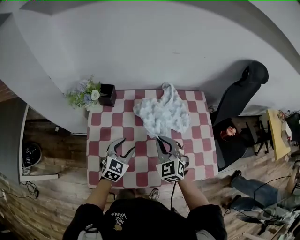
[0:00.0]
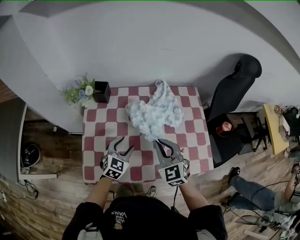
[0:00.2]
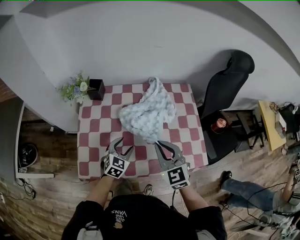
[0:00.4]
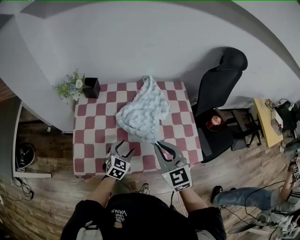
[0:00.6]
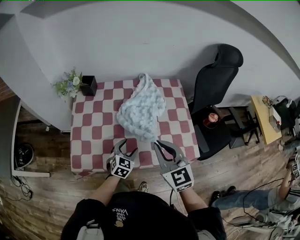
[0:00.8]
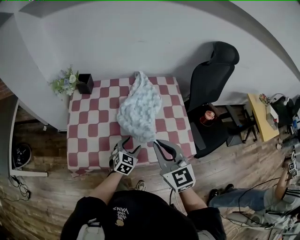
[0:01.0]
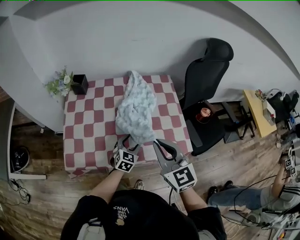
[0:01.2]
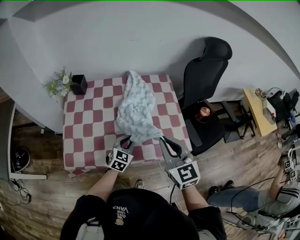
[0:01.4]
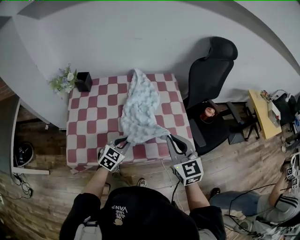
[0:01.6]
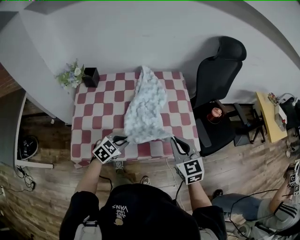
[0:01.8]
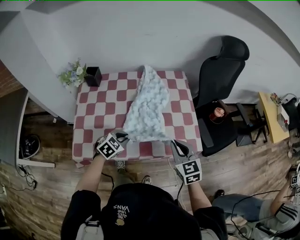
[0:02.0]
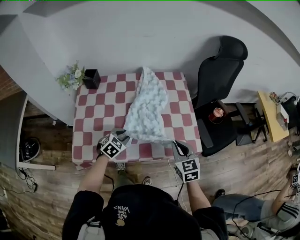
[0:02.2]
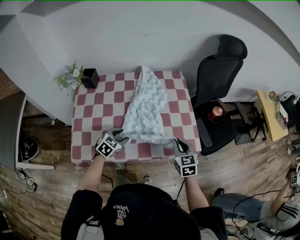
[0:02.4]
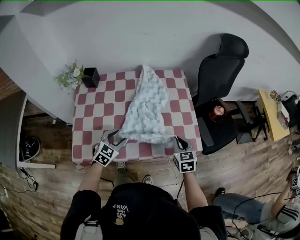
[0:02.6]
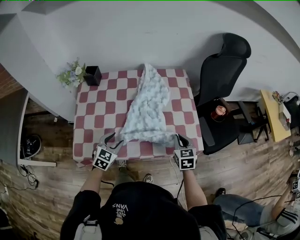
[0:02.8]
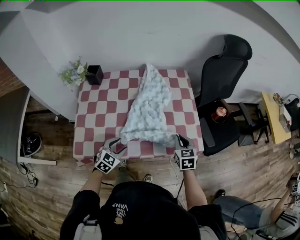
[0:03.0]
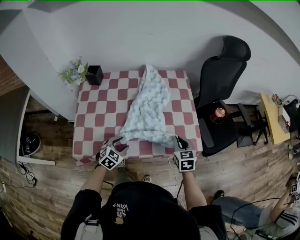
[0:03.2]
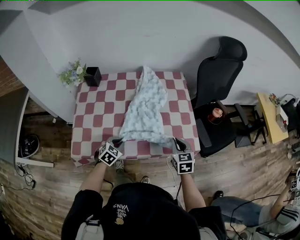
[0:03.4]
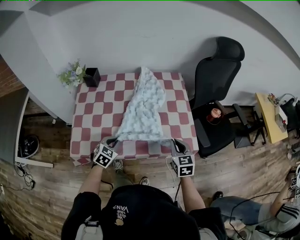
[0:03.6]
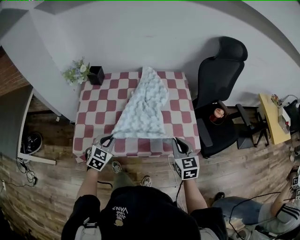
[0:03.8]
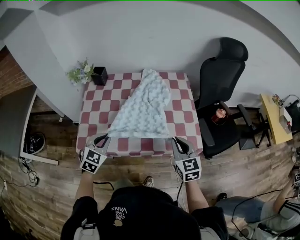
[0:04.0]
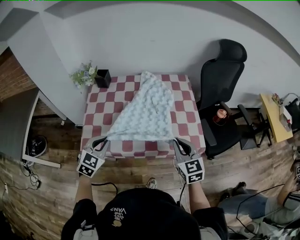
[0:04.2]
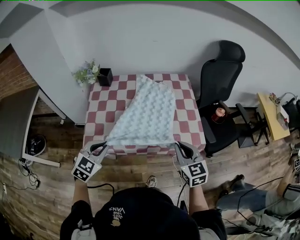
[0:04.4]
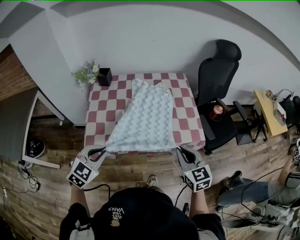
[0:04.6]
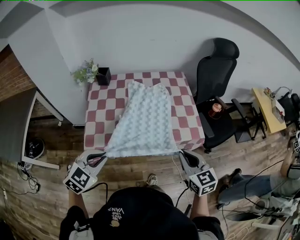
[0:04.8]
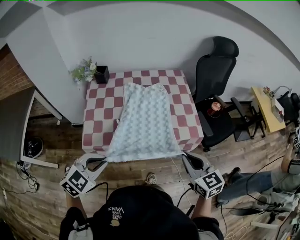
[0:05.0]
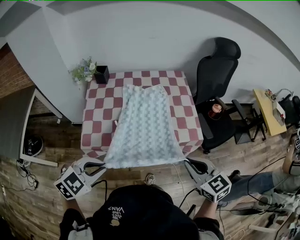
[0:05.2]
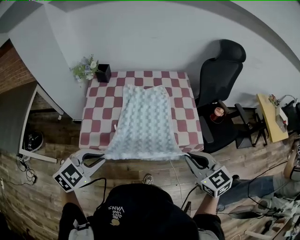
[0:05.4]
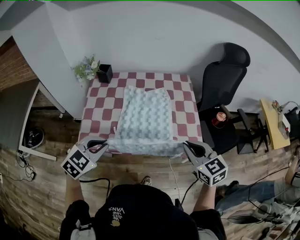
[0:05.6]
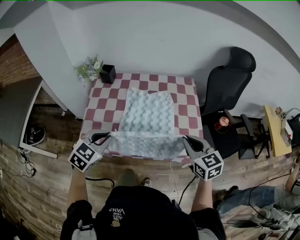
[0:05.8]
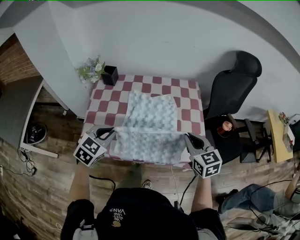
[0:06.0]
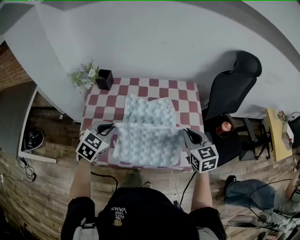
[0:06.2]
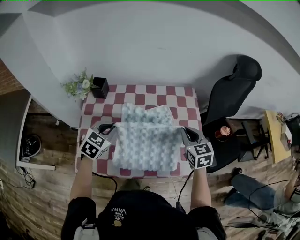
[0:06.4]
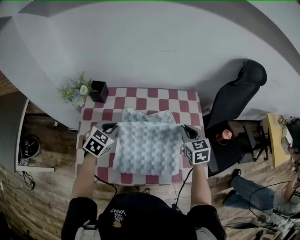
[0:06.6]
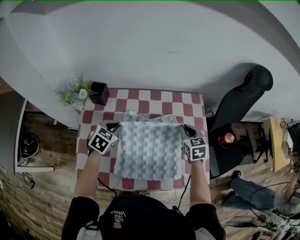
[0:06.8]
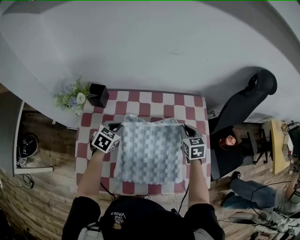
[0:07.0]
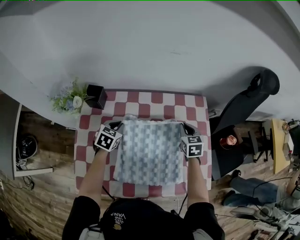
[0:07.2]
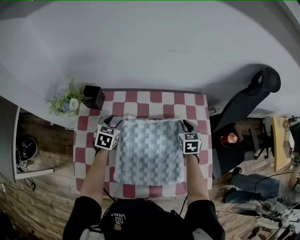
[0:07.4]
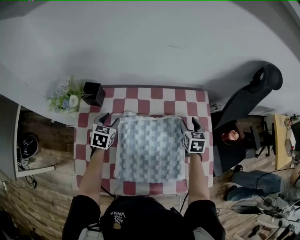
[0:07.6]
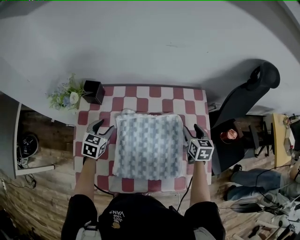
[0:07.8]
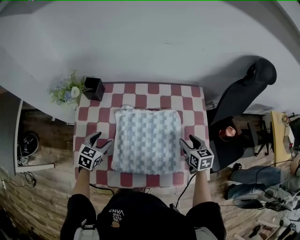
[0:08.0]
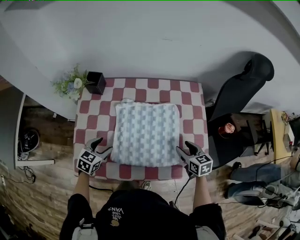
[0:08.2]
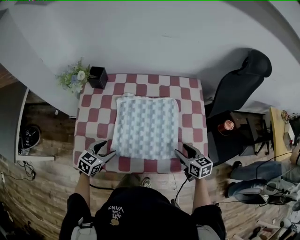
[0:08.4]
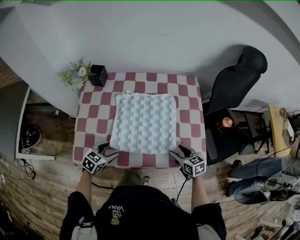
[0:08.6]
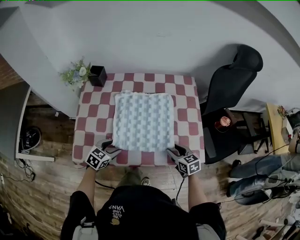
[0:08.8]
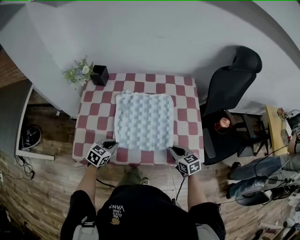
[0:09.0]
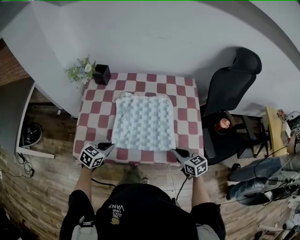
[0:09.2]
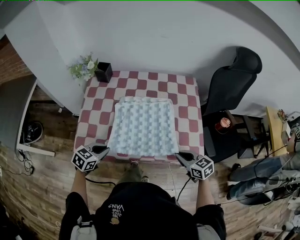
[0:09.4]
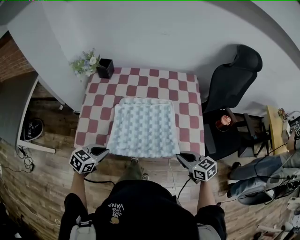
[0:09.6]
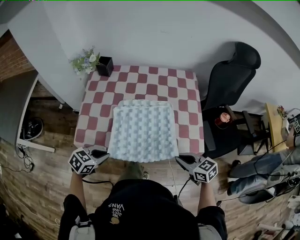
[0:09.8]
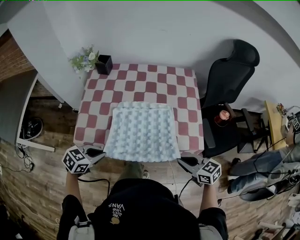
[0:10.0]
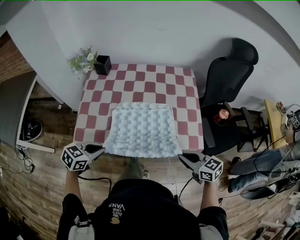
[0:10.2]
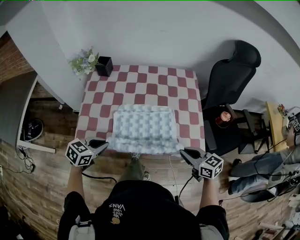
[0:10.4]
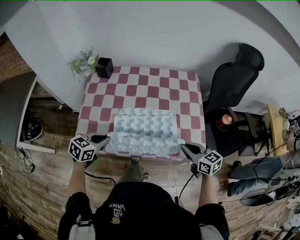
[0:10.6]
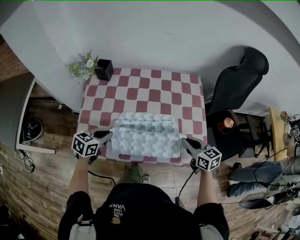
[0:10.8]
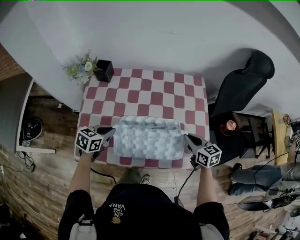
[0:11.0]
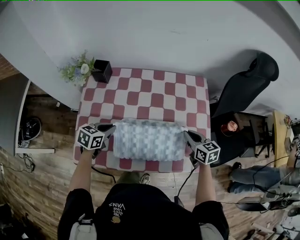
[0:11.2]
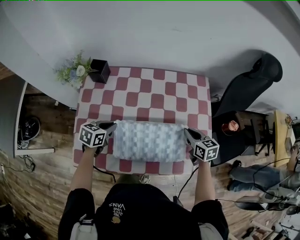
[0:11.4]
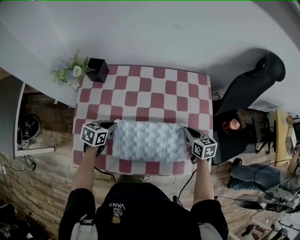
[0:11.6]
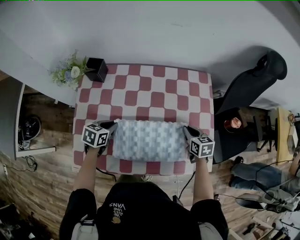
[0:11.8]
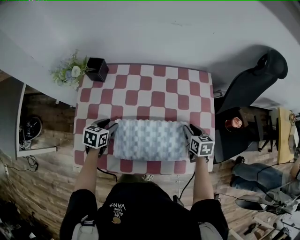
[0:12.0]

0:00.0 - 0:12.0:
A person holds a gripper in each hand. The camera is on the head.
0:00.0 - 0:01.6: The left gripper goes about 20 cm to the right and backward, and closes its fingers, while the right gripper goes some 25 cm to the right, backward and upward, and changes its angle by about 30 degrees.
0:01.6 - 0:03.0: The right gripper travels downward by roughly 15 cm, and swivels roughly 20 degrees. Meanwhile the left gripper heads to the left and backward, covering some 10 cm, and opens.
0:03.0 - 0:04.4: Both grippers move upward, backward and to the left, about 20 cm. The left gripper closes its fingers.
0:04.4 - 0:06.0: Both grippers move forward, roughly 10 cm.
0:06.0 - 0:07.6: The grippers both shift forward and downward by some 35 cm. The left gripper turns by about 20 degrees, and opens up; the right gripper turns by about 30 degrees, and opens its fingers.
0:07.6 - 0:09.0: The two grippers go approximately 30 cm backward. The right gripper turns by approximately 30 degrees, and closes its fingers, while the left gripper closes its fingers.
0:09.0 - 0:10.4: The two grippers go some 15 cm upward and backward.
0:10.4 - 0:12.0: Both grippers move forward and downward, approximately 25 cm. The left gripper rotates roughly 20 degrees, and opens up; the right gripper changes its angle by roughly 40 degrees, and opens its fingers.

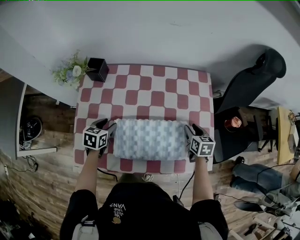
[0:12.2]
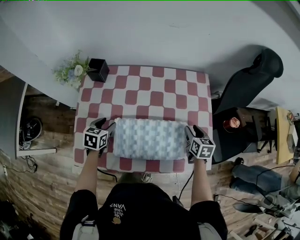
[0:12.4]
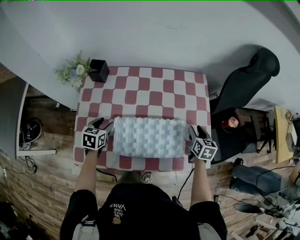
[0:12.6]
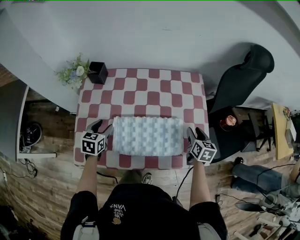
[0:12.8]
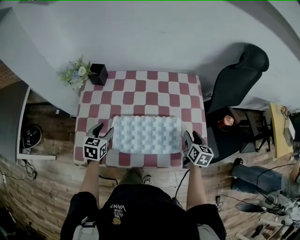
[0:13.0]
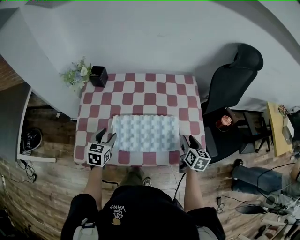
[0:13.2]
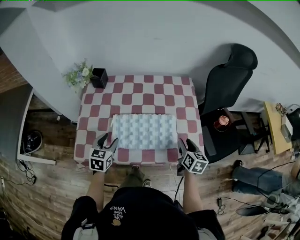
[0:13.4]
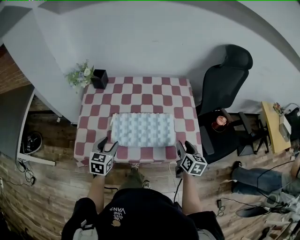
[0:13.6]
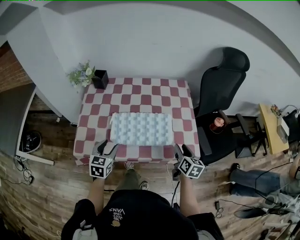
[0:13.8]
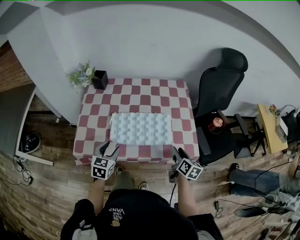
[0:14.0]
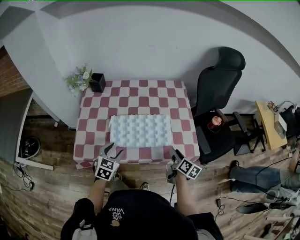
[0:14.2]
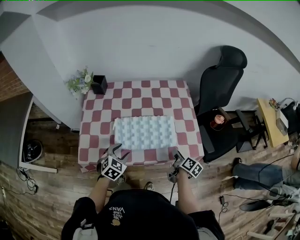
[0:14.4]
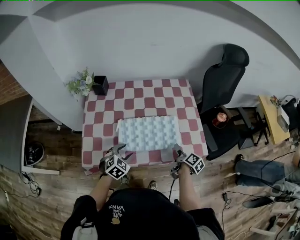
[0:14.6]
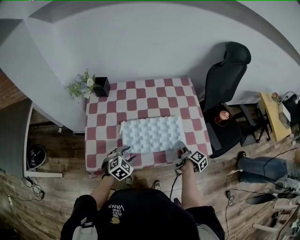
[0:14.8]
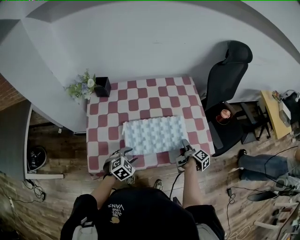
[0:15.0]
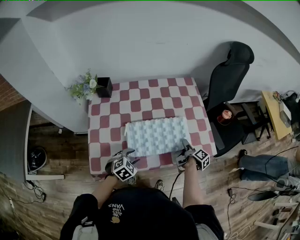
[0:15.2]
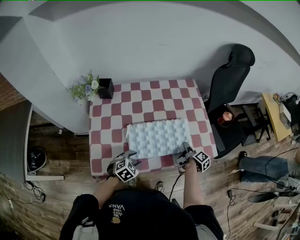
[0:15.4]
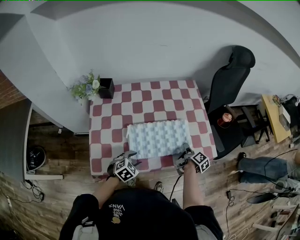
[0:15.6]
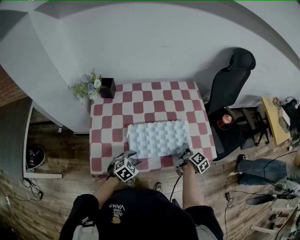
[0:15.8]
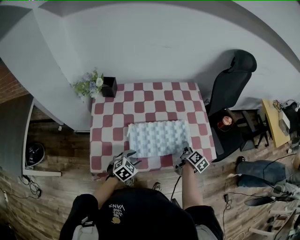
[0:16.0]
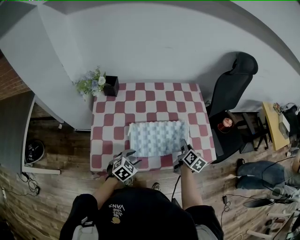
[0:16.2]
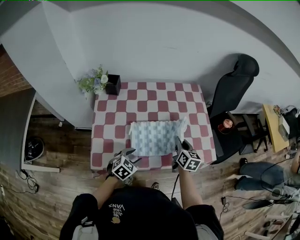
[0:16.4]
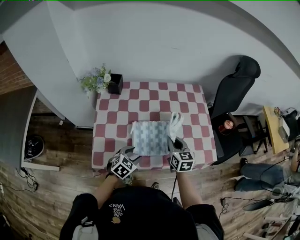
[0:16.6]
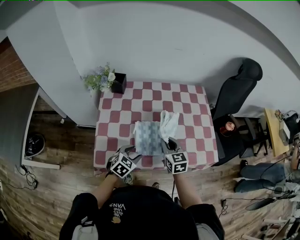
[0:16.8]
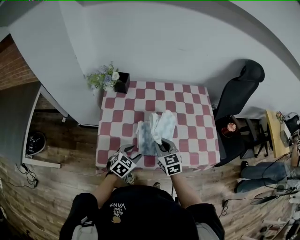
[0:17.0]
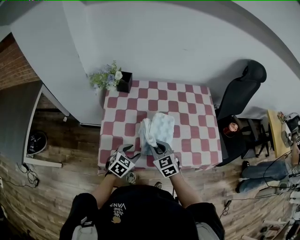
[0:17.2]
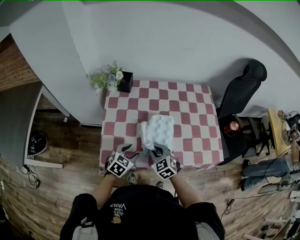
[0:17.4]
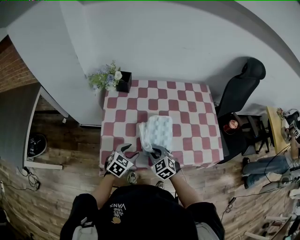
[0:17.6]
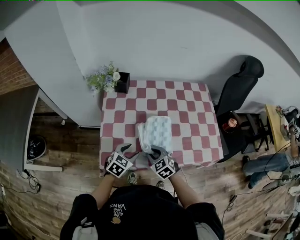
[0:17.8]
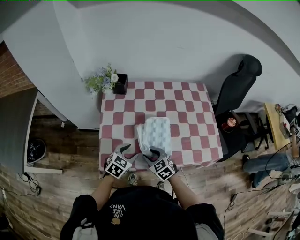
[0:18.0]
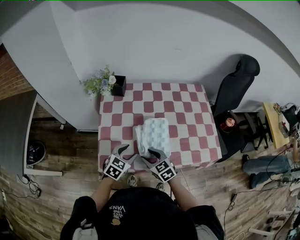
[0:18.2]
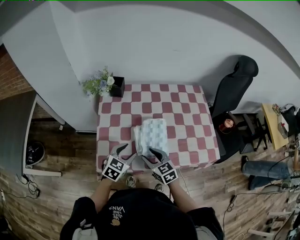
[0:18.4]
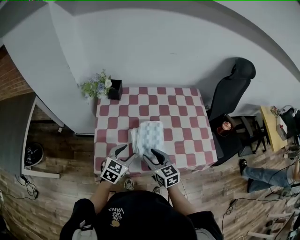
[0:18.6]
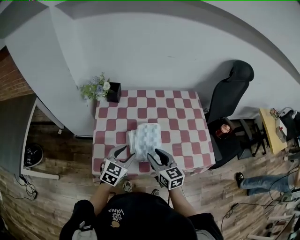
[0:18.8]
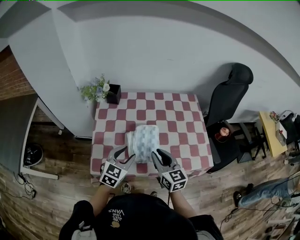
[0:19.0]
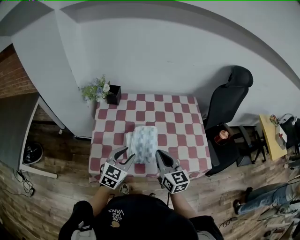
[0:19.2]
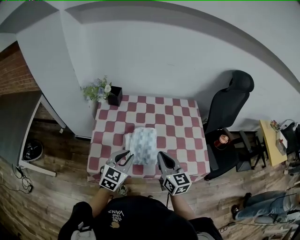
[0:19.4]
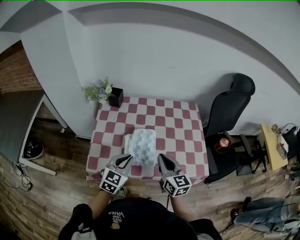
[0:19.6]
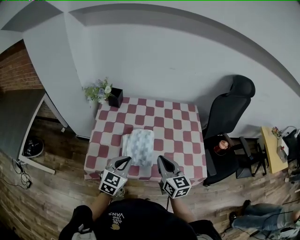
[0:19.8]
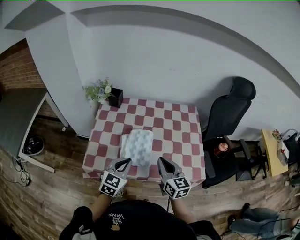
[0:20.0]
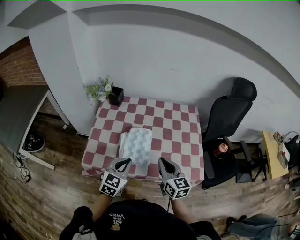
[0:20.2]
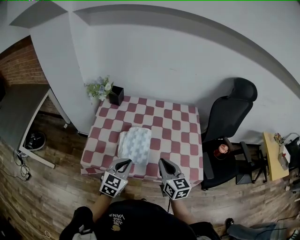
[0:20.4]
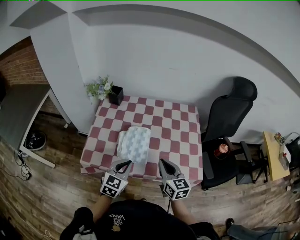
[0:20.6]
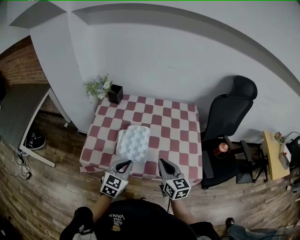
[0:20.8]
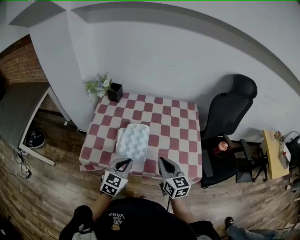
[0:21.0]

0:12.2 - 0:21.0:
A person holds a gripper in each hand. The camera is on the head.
0:12.2 - 0:13.6: The right gripper moves backward and upward, about 20 cm, and rotates about 20 degrees, while the left gripper heads backward, upward and to the right, covering about 20 cm, and turns by some 20 degrees.
0:13.6 - 0:15.2: The grippers both shift downward by some 10 cm. The left gripper rotates approximately 50 degrees; the right gripper rolls clockwise, seen from behind, by about 60 degrees.
0:15.2 - 0:16.6: The right gripper travels to the left and upward by approximately 20 cm, twists roughly 80 degrees counterclockwise, seen from behind, and closes its fingers.
0:16.6 - 0:18.0: The right gripper shifts roughly 20 cm to the left, backward and downward, rotates approximately 40 degrees, and opens its fingers. Meanwhile the left gripper heads to the left, covering roughly 5 cm.
0:18.0 - 0:19.6: The left gripper goes roughly 15 cm upward and to the right, swivels roughly 20 degrees, and closes its fingers. The right gripper travels upward and to the right by approximately 25 cm, points its fingers some 30 degrees further upward, and closes.
0:19.6 - 0:21.0: Both grippers travel together to the right, some 5 cm.

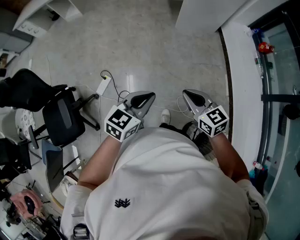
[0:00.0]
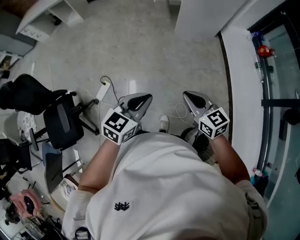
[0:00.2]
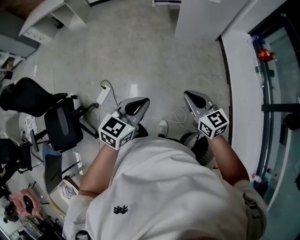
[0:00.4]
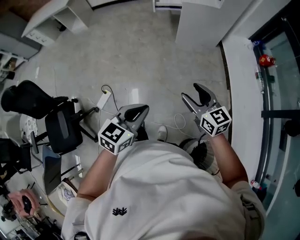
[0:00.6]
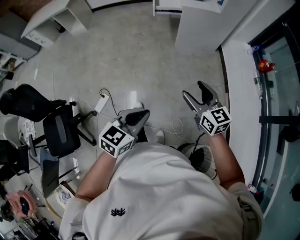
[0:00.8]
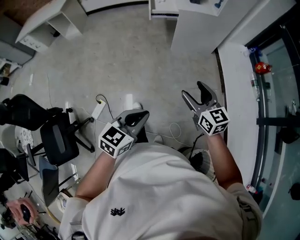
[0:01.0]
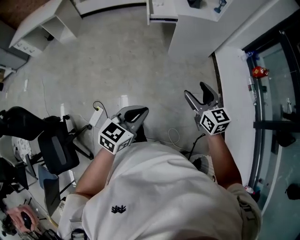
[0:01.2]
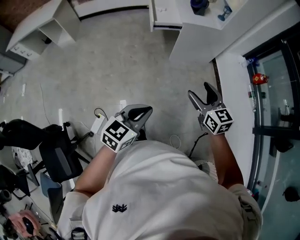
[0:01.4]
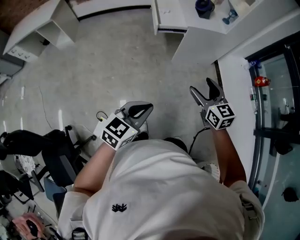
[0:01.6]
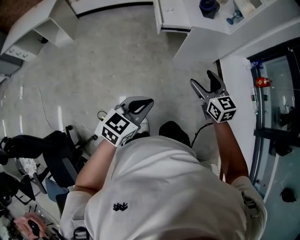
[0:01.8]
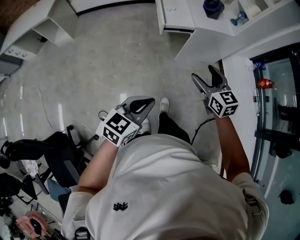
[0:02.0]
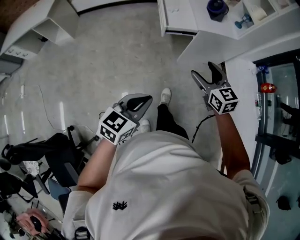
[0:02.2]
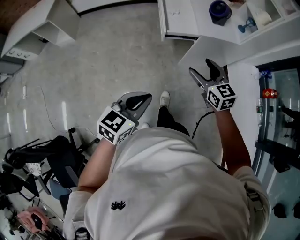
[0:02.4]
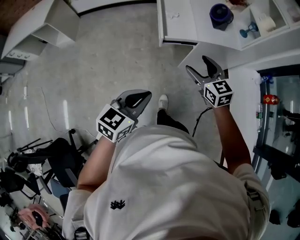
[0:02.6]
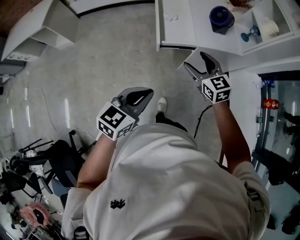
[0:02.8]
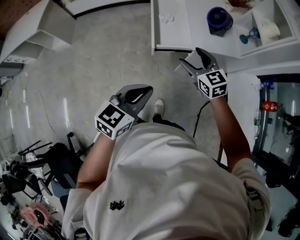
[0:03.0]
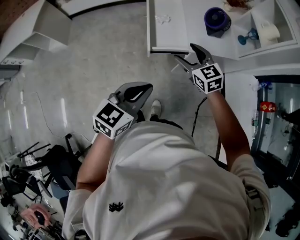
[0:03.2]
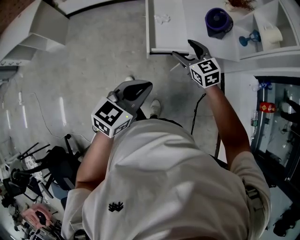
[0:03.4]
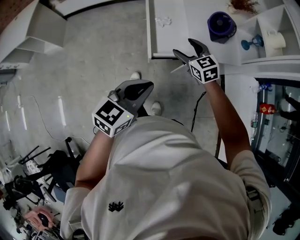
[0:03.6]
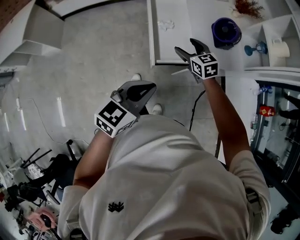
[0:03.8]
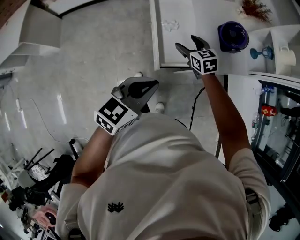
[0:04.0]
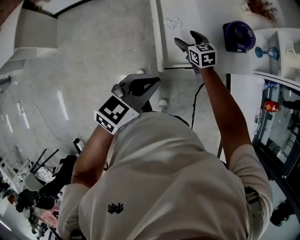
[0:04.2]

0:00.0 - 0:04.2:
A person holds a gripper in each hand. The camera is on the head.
0:00.0 - 0:01.4: Both grippers travel together forward, about 30 cm. The right gripper opens.
0:01.4 - 0:02.8: The two grippers travel together, forward, some 40 cm.
0:02.8 - 0:04.2: The left gripper moves forward, approximately 30 cm; the right gripper goes about 40 cm forward and downward, and changes its angle by roughly 20 degrees.
